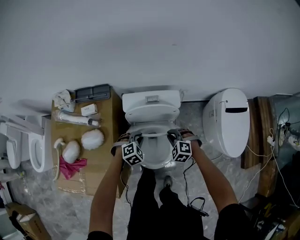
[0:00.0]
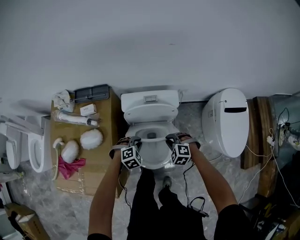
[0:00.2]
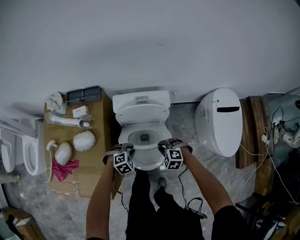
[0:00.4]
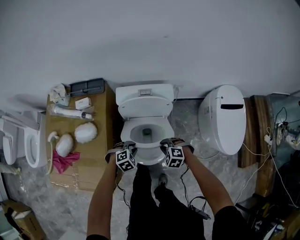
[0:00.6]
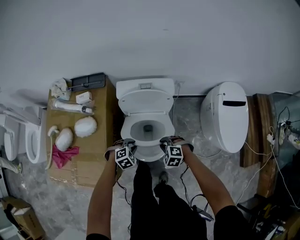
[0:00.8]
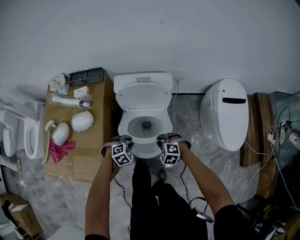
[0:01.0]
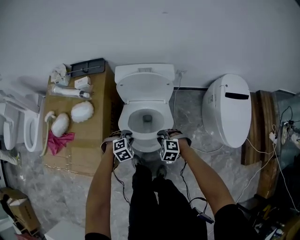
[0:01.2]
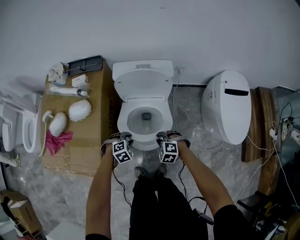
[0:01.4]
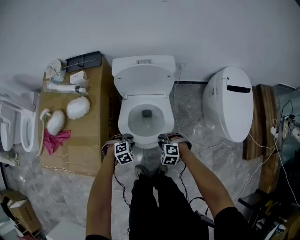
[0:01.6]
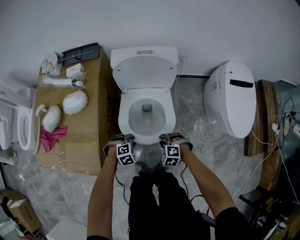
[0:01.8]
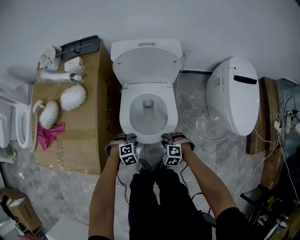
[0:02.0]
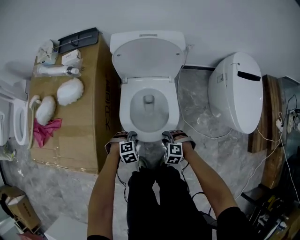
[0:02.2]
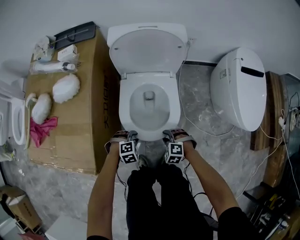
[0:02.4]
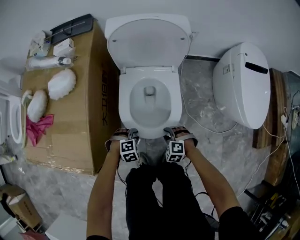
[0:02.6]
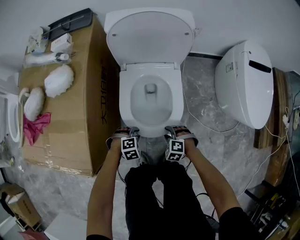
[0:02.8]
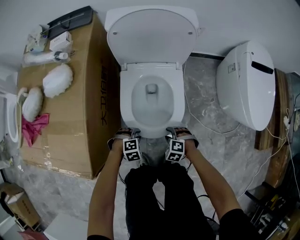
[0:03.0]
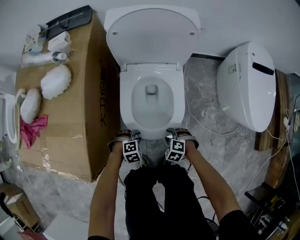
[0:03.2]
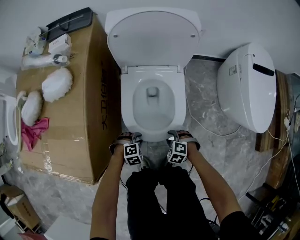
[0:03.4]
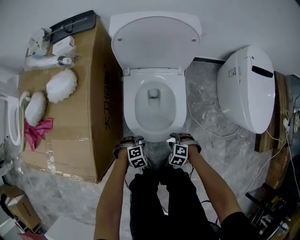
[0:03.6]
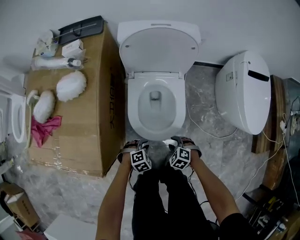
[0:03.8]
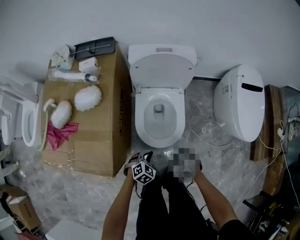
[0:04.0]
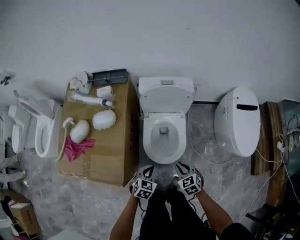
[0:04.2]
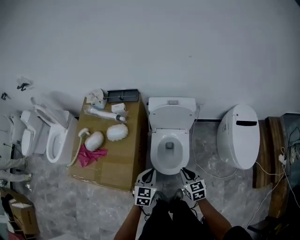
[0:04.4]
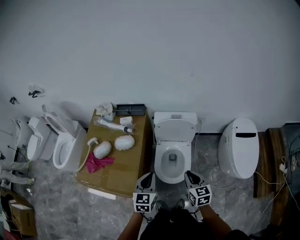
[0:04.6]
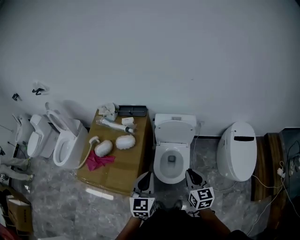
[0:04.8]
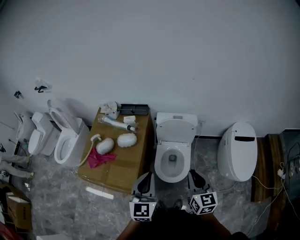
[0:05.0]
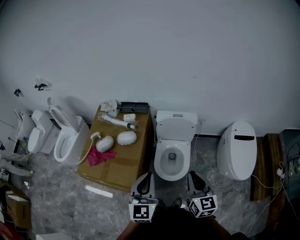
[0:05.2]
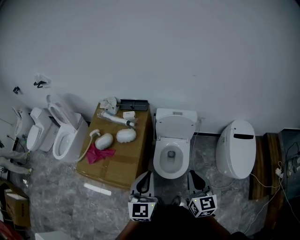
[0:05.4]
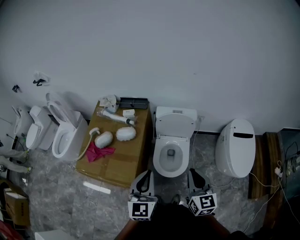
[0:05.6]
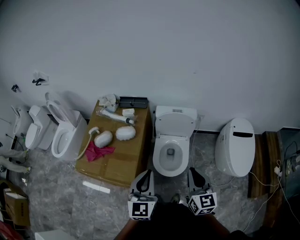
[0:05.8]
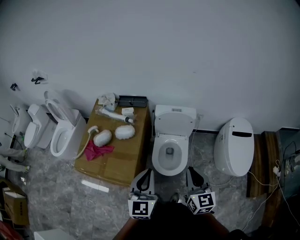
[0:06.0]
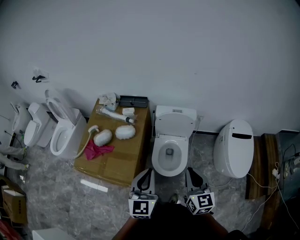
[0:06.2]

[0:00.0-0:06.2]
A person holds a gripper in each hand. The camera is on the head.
0:00.0 to 0:01.6: The two grippers go about 25 cm backward and downward.
0:01.6 to 0:03.2: Both grippers move downward, some 25 cm.
0:03.2 to 0:04.6: Both grippers move upward, some 60 cm. The left gripper tilts its fingers roughly 50 degrees upward, and closes, while the right gripper tilts its fingers approximately 50 degrees upward, and closes up.
0:04.6 to 0:06.2: The right gripper goes about 15 cm upward. The left gripper heads upward and backward, covering approximately 15 cm.

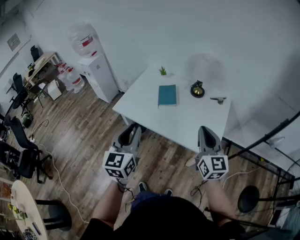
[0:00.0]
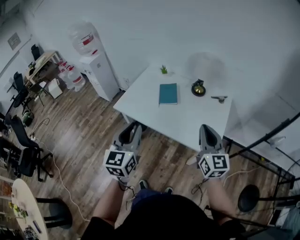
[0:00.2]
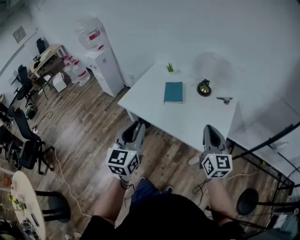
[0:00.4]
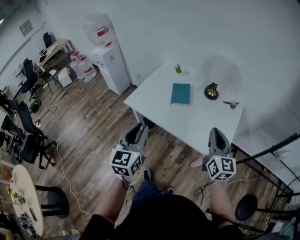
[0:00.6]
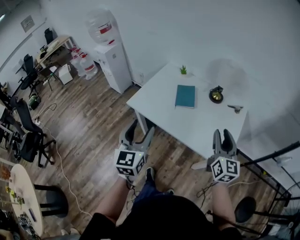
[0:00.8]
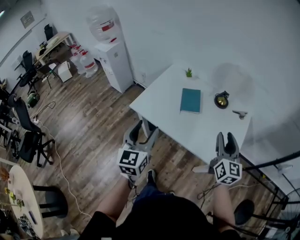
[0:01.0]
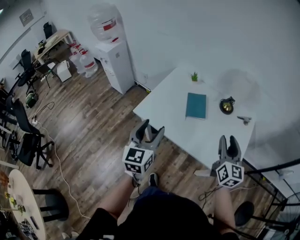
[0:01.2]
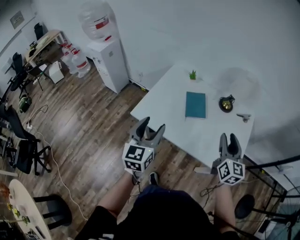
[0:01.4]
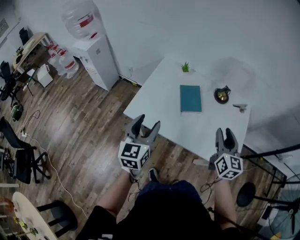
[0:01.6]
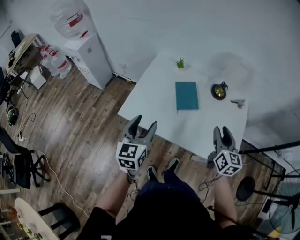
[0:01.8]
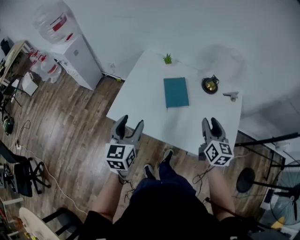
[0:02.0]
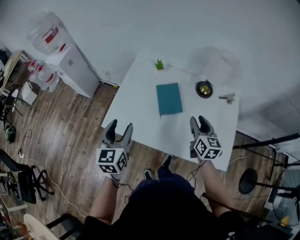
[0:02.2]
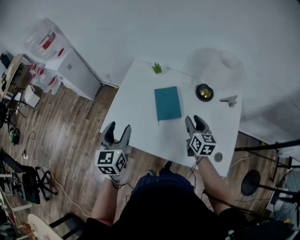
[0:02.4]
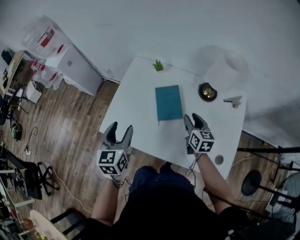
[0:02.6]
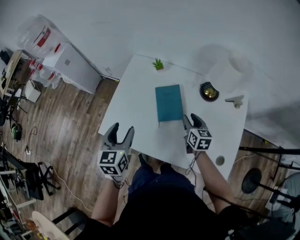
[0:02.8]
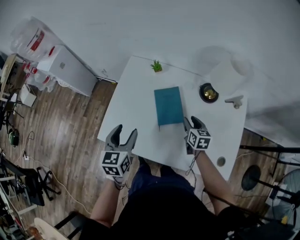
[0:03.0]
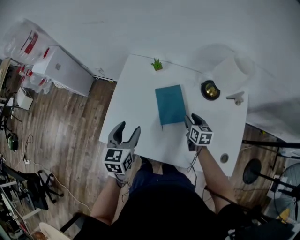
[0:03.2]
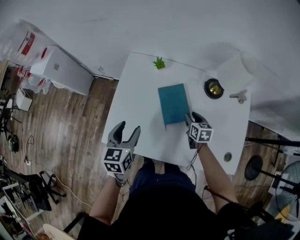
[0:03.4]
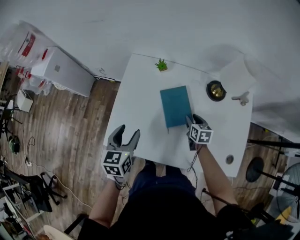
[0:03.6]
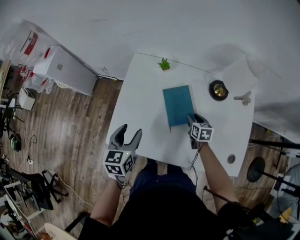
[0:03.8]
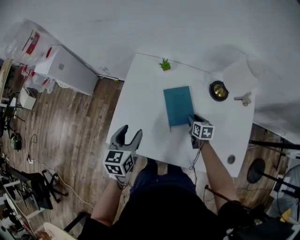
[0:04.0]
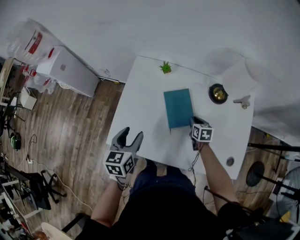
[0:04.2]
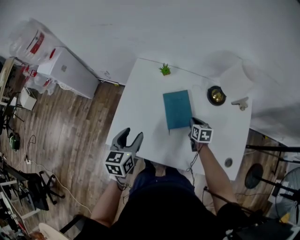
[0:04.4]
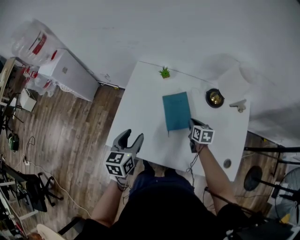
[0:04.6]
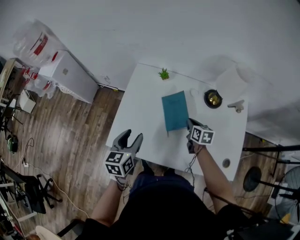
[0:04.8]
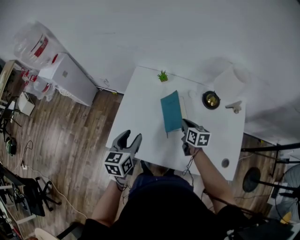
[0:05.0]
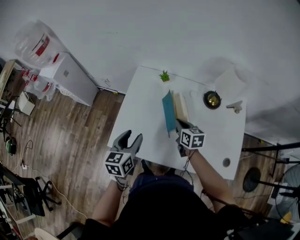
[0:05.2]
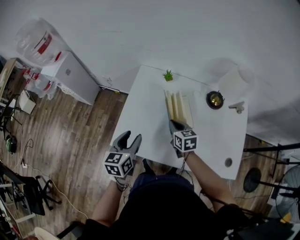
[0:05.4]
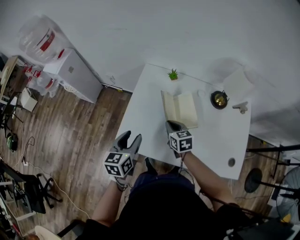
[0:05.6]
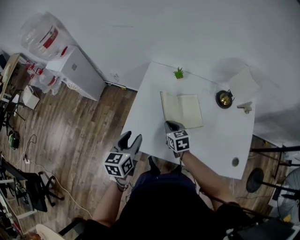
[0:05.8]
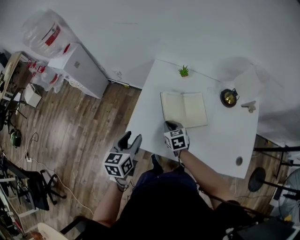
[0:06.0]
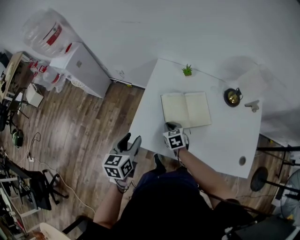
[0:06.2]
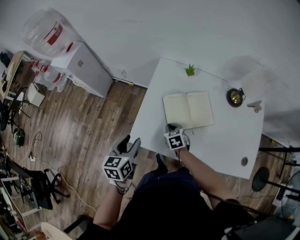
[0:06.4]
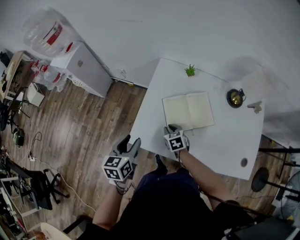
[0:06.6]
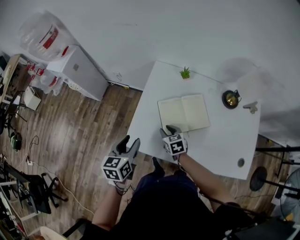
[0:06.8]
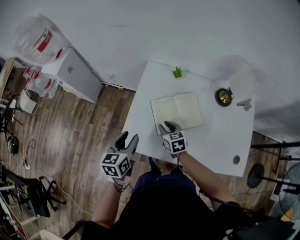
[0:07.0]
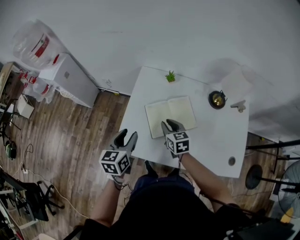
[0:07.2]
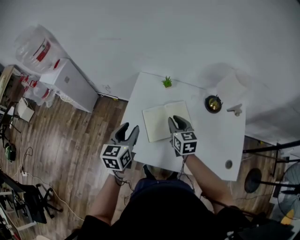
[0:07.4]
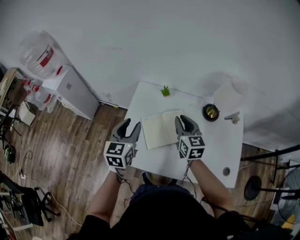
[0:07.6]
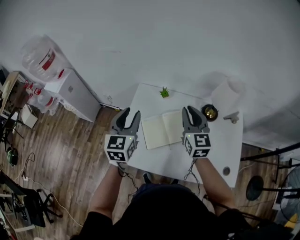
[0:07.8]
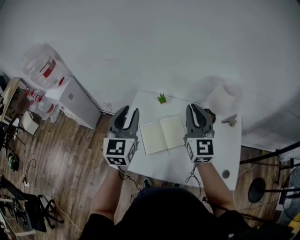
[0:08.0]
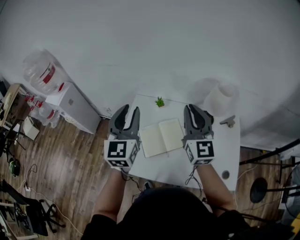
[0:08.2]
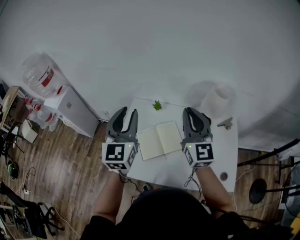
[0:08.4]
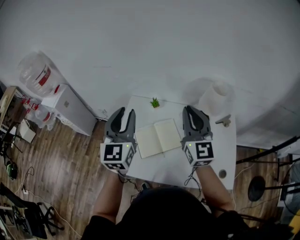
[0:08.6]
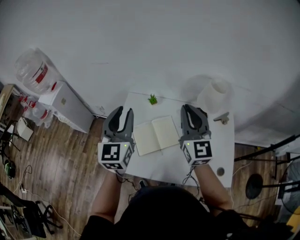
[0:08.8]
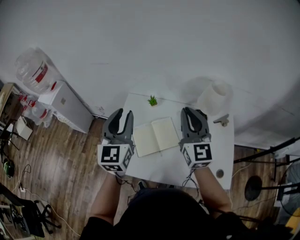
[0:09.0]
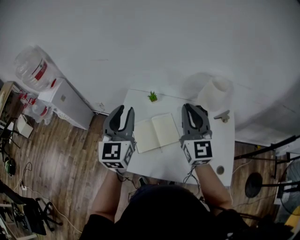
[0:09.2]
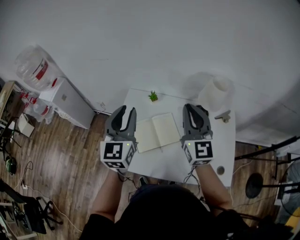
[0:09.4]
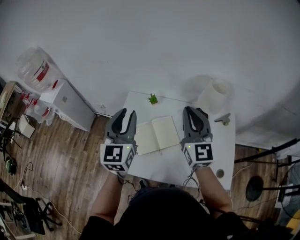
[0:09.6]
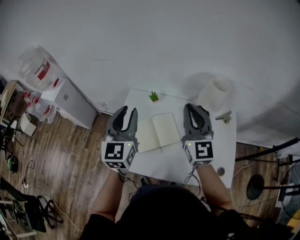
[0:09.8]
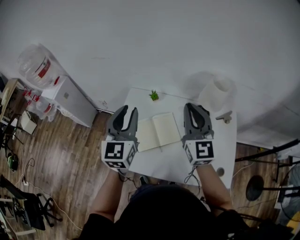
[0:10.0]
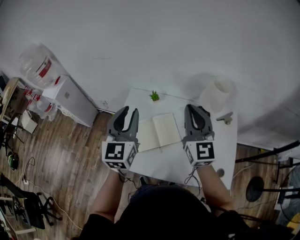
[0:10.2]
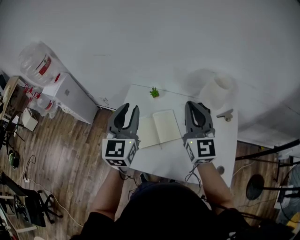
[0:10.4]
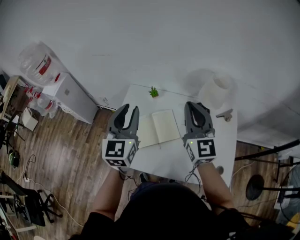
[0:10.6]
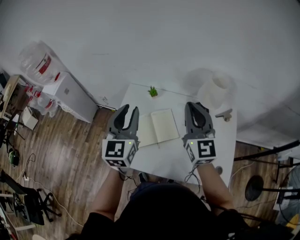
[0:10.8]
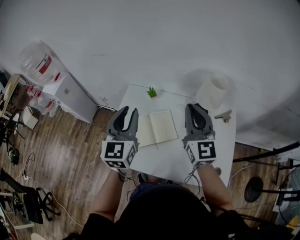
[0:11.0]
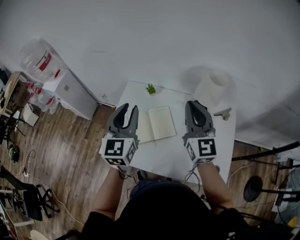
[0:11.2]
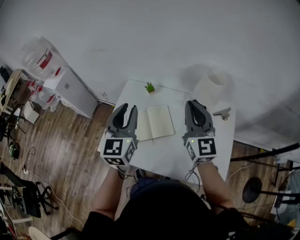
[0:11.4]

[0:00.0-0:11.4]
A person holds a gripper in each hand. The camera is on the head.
0:00.0 to 0:01.4: Both grippers travel together forward and to the left, about 25 cm. The left gripper opens its fingers. Meanwhile the right gripper opens its fingers.
0:01.4 to 0:02.8: Both grippers travel together forward and downward, some 30 cm. The right gripper swivels approximately 30 degrees.
0:02.8 to 0:04.2: The right gripper heads downward, covering some 10 cm, and closes, while the left gripper is displaced downward by approximately 5 cm.
0:04.2 to 0:05.6: The right gripper heads to the left and upward, covering about 25 cm, and swivels roughly 20 degrees. Meanwhile the left gripper travels to the left by approximately 5 cm.
0:05.6 to 0:07.2: The left gripper reaches some 10 cm to the left, then returns. Meanwhile the right gripper goes downward and returns, some 10 cm each way, and opens up.
0:07.2 to 0:08.6: Both grippers move upward and to the right, roughly 30 cm. The right gripper tilts its fingers roughly 40 degrees upward, while the left gripper rotates about 40 degrees.
0:08.6 to 0:10.0: There are only small adjustments of the grippers.
0:10.0 to 0:11.4: The two grippers go roughly 5 cm to the right.

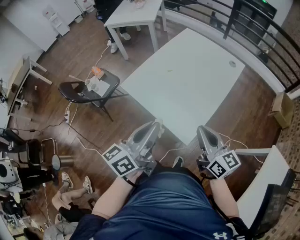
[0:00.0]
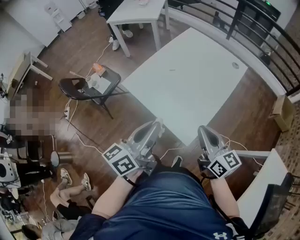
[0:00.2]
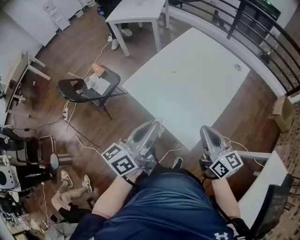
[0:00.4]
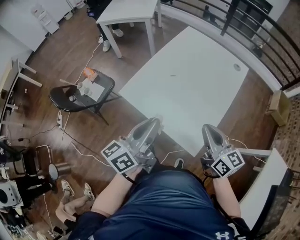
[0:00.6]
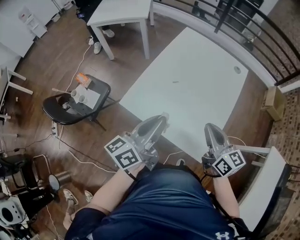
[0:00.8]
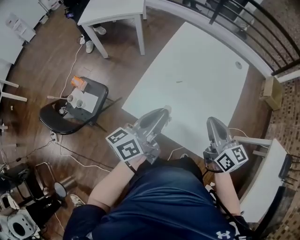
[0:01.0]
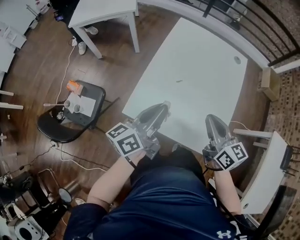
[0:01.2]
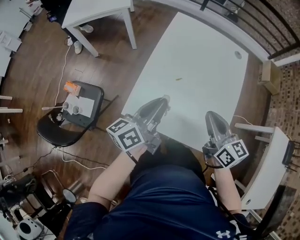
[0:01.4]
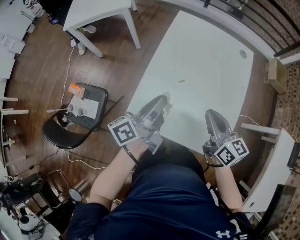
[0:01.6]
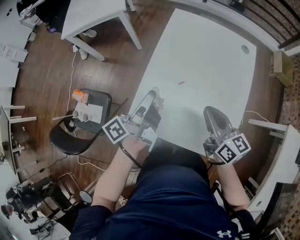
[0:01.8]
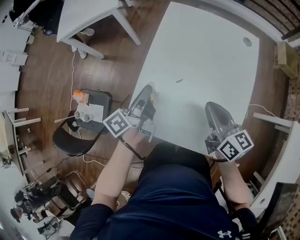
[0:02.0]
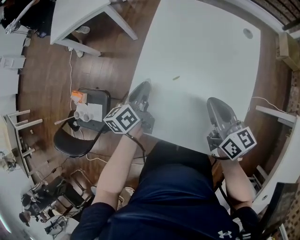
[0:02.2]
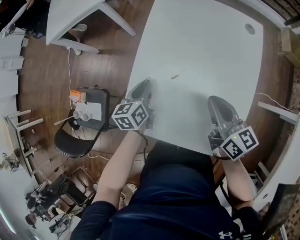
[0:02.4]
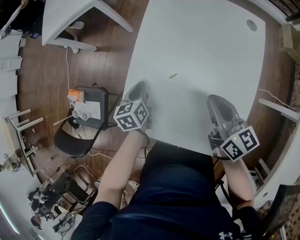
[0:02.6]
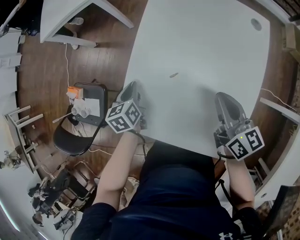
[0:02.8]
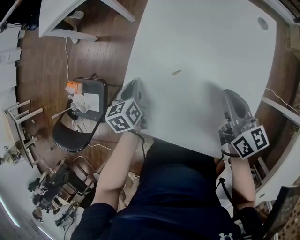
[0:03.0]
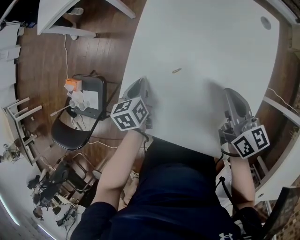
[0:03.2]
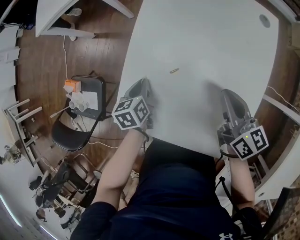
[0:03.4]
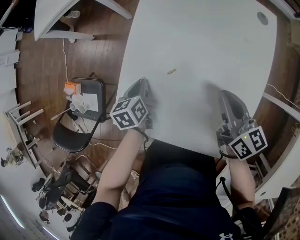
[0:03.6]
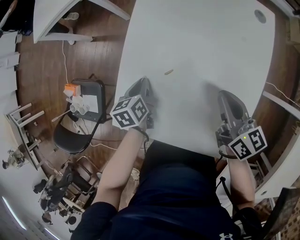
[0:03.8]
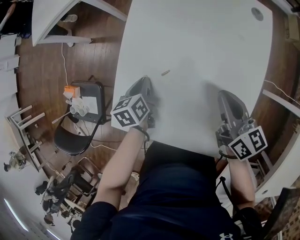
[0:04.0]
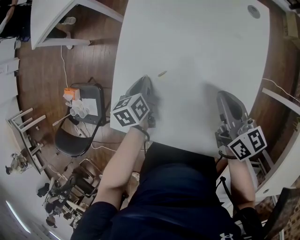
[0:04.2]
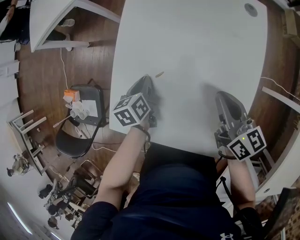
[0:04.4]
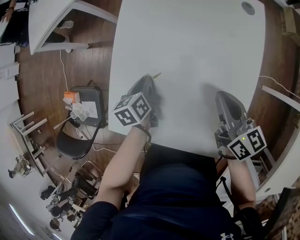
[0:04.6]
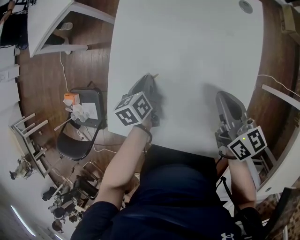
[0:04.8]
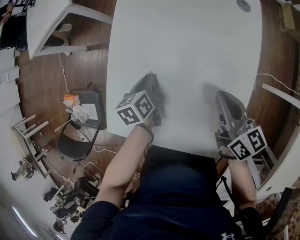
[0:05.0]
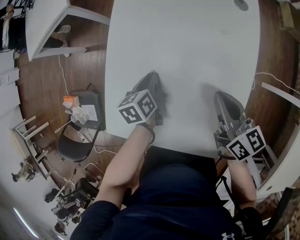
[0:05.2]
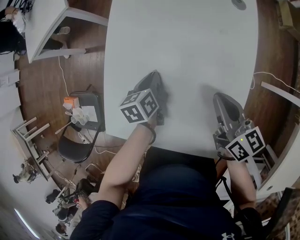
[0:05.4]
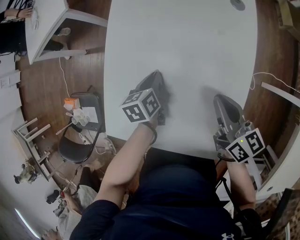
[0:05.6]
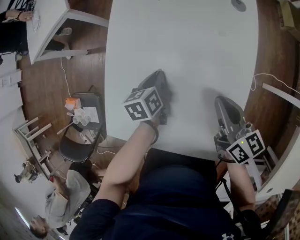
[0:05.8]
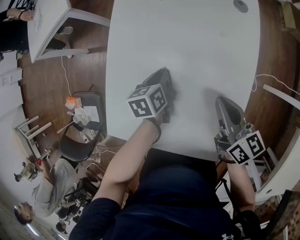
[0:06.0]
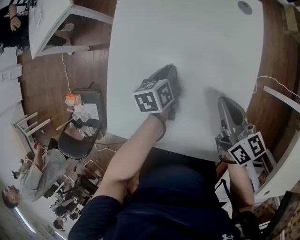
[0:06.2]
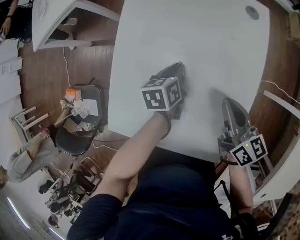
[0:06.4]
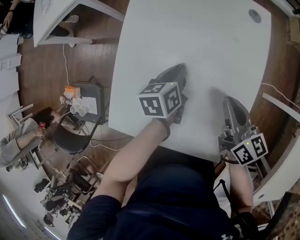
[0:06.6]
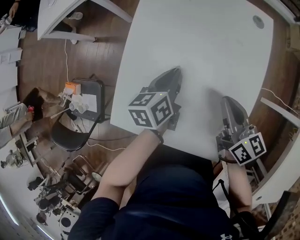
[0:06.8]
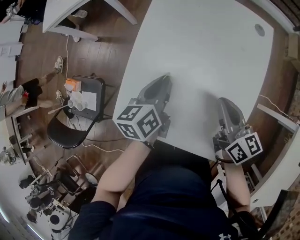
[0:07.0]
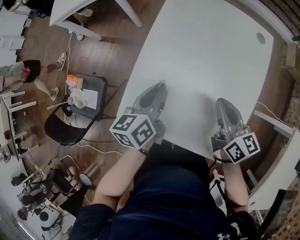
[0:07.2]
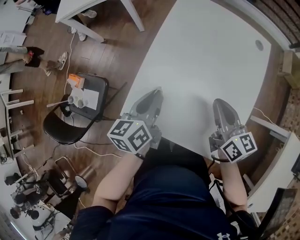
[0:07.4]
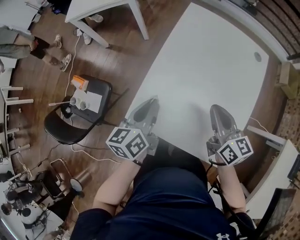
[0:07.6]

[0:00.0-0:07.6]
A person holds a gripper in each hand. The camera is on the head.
0:00.0 to 0:01.6: Both grippers travel together forward and to the left, roughly 30 cm. The left gripper turns by approximately 30 degrees; the right gripper turns by roughly 20 degrees.
0:01.6 to 0:03.0: The left gripper heads downward and forward, covering roughly 25 cm, and angles its fingers downward, by about 50 degrees. The right gripper travels forward, downward and to the right by approximately 15 cm.
0:03.0 to 0:04.6: The left gripper shifts approximately 10 cm to the right.
0:04.6 to 0:06.0: The left gripper goes approximately 10 cm to the right.
0:06.0 to 0:07.6: The left gripper is displaced upward, to the left and backward by approximately 30 cm, and rotates approximately 30 degrees, while the right gripper shifts approximately 15 cm to the left and upward.
